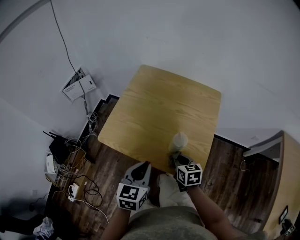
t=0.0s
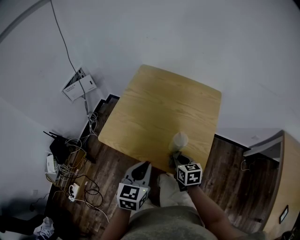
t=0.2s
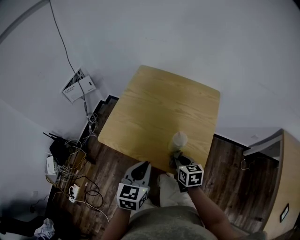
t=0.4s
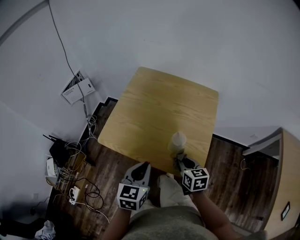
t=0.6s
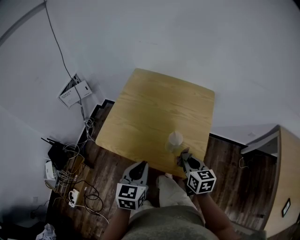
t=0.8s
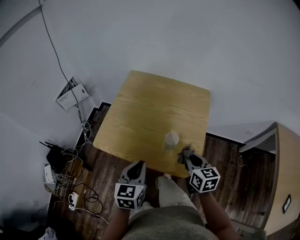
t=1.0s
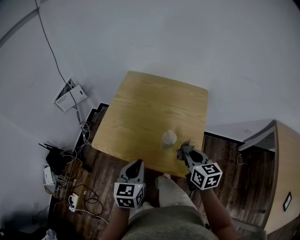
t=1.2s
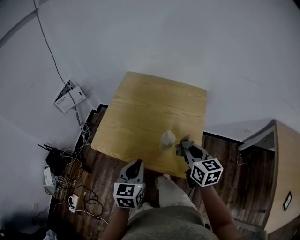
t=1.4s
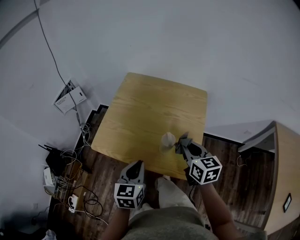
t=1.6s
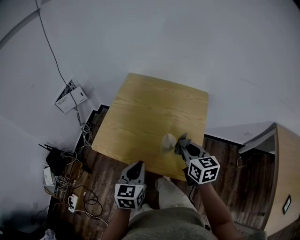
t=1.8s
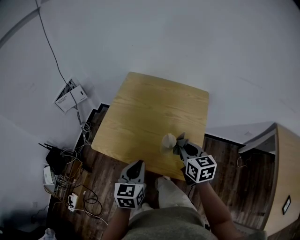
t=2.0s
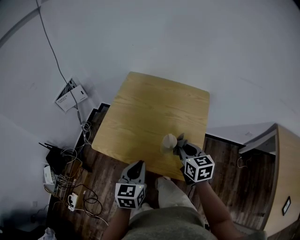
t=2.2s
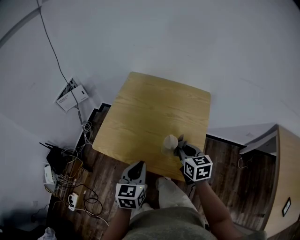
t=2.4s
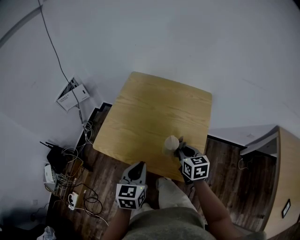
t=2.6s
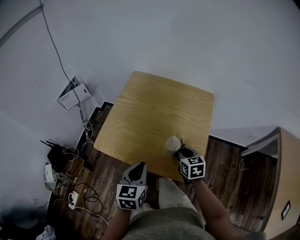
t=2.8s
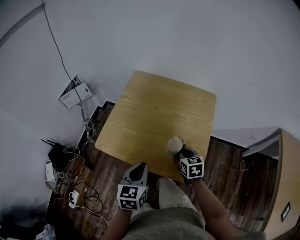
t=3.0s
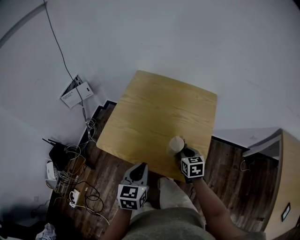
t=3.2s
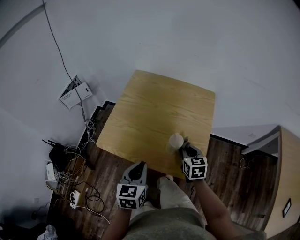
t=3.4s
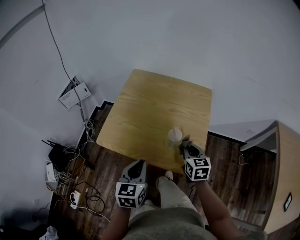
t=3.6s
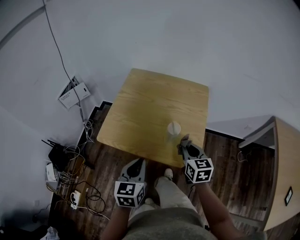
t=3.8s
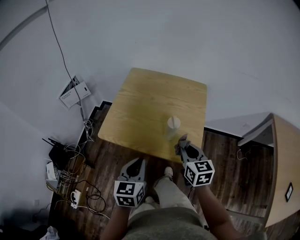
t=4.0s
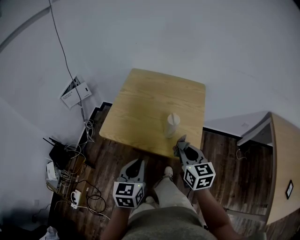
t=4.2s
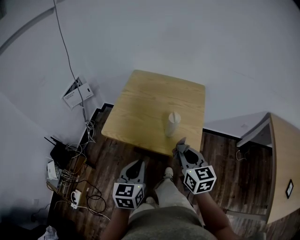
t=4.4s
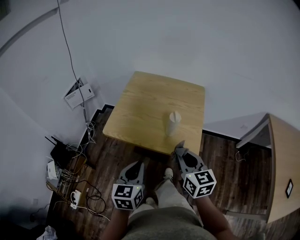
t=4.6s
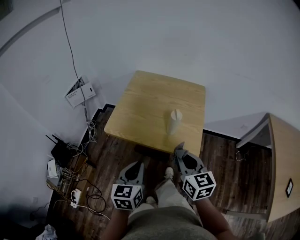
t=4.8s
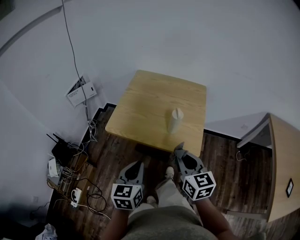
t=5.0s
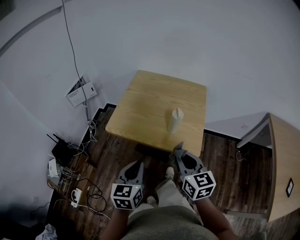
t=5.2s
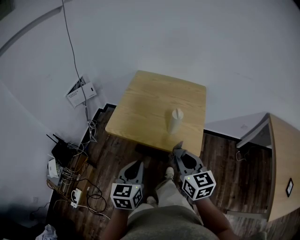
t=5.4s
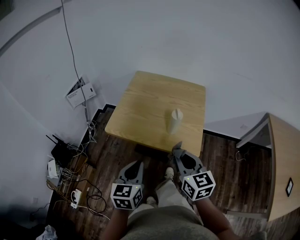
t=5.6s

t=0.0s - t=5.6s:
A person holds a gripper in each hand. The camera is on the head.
t=0.0s - t=1.4s: The right gripper is displaced upward and to the right by roughly 15 cm.
t=1.4s - t=2.8s: The right gripper shifts roughly 10 cm downward.
t=2.8s - t=4.2s: The left gripper shifts some 10 cm backward. Meanwhile the right gripper heads upward and backward, covering approximately 20 cm.
t=4.2s - t=5.6s: The right gripper moves backward and to the left, roughly 10 cm. Meanwhile the left gripper shifts by approximately 5 cm.

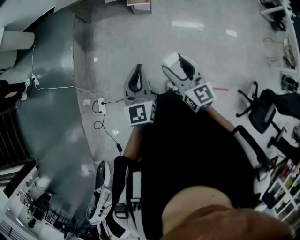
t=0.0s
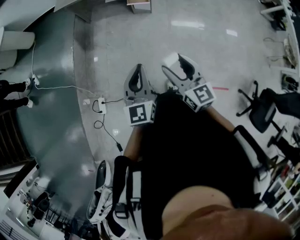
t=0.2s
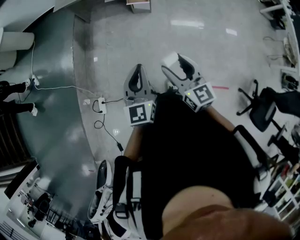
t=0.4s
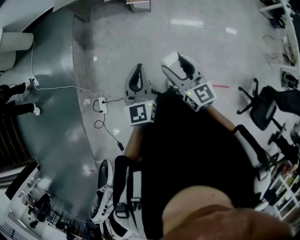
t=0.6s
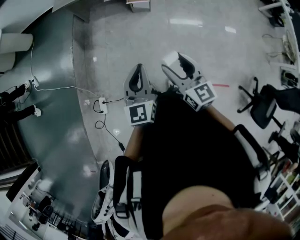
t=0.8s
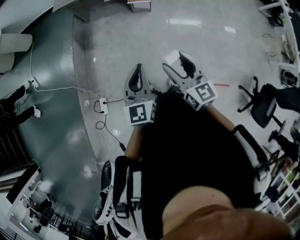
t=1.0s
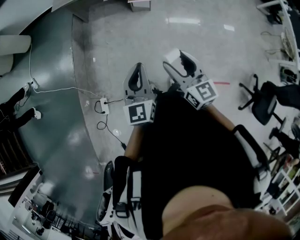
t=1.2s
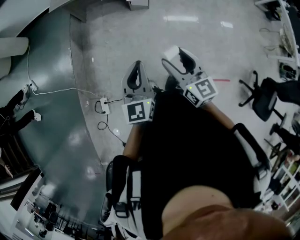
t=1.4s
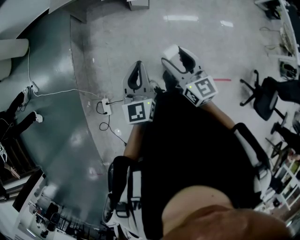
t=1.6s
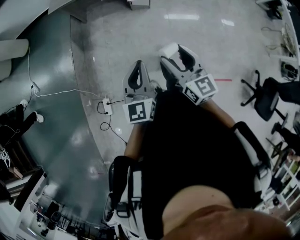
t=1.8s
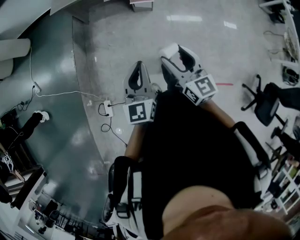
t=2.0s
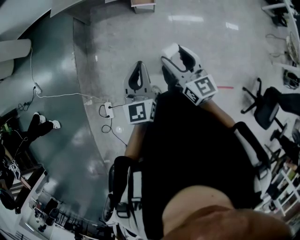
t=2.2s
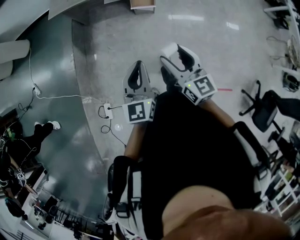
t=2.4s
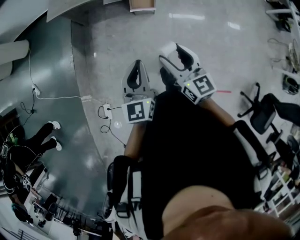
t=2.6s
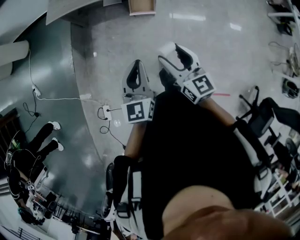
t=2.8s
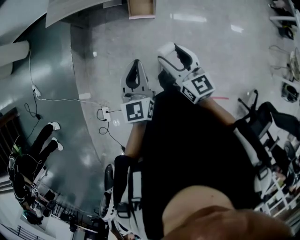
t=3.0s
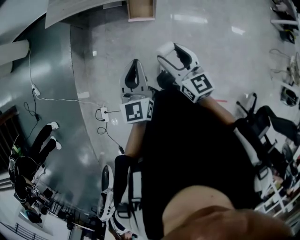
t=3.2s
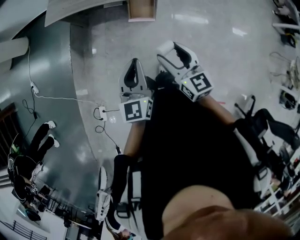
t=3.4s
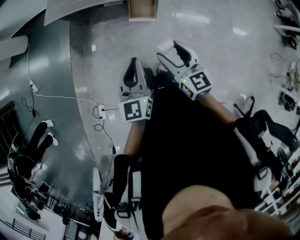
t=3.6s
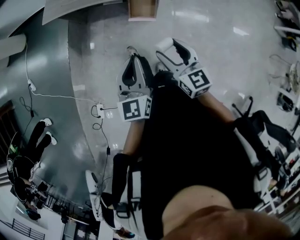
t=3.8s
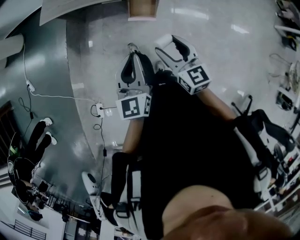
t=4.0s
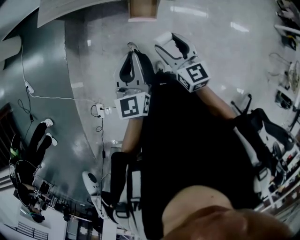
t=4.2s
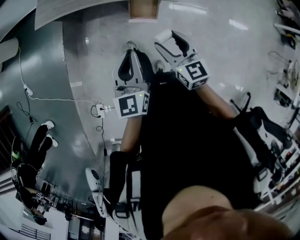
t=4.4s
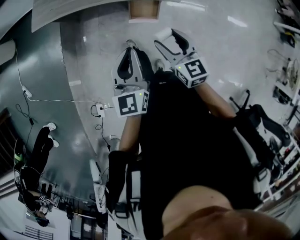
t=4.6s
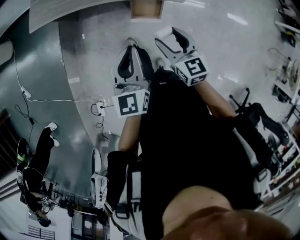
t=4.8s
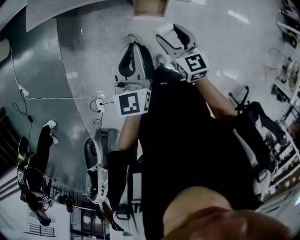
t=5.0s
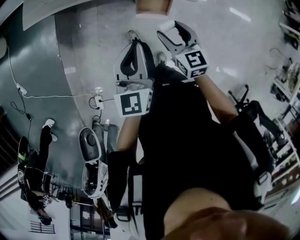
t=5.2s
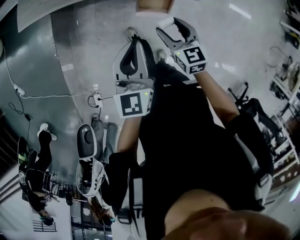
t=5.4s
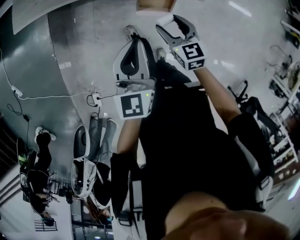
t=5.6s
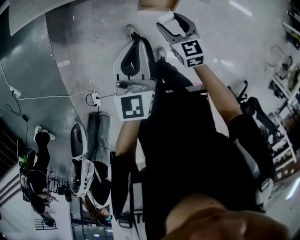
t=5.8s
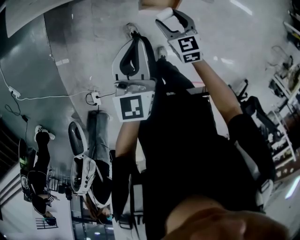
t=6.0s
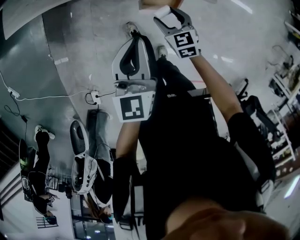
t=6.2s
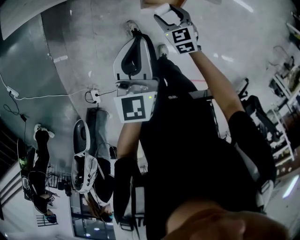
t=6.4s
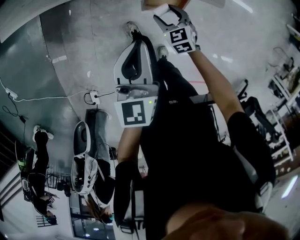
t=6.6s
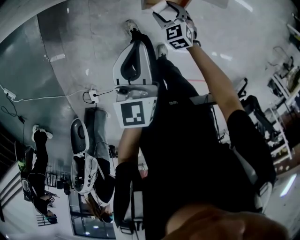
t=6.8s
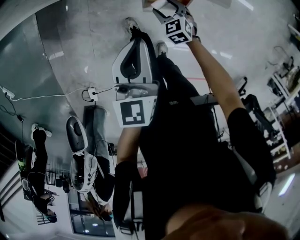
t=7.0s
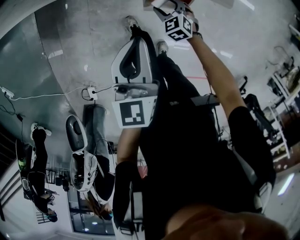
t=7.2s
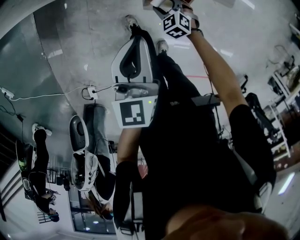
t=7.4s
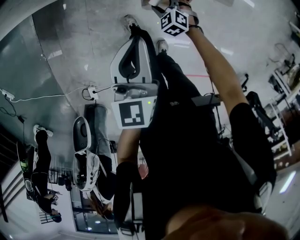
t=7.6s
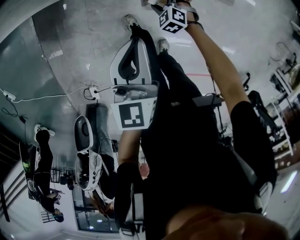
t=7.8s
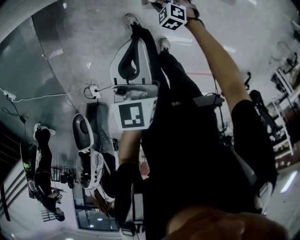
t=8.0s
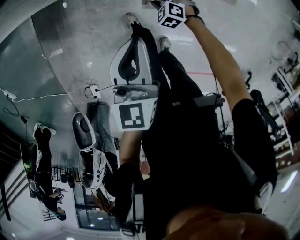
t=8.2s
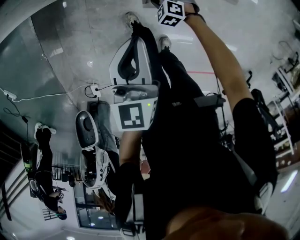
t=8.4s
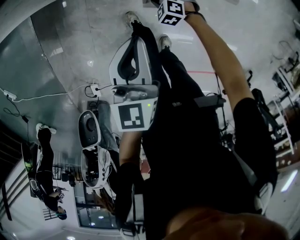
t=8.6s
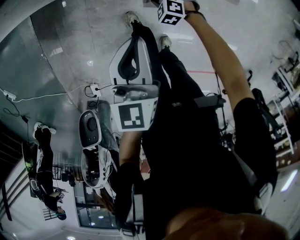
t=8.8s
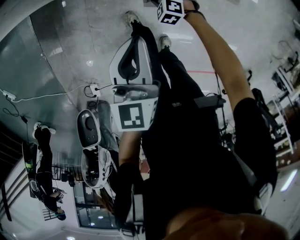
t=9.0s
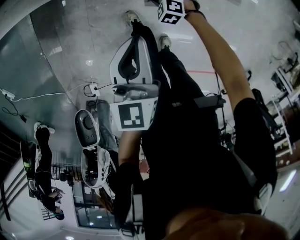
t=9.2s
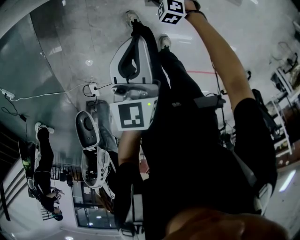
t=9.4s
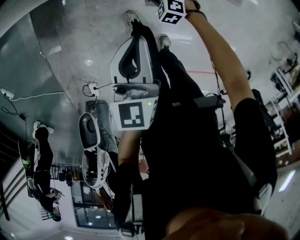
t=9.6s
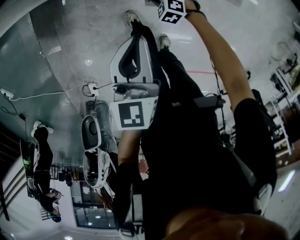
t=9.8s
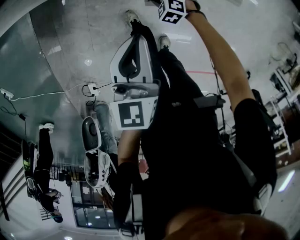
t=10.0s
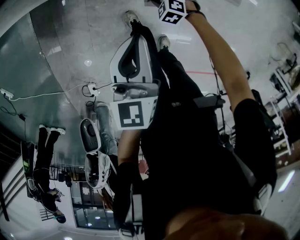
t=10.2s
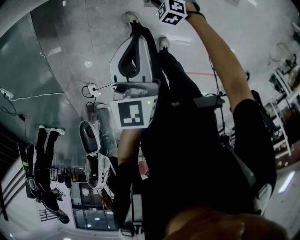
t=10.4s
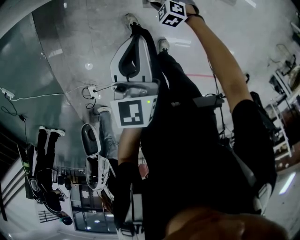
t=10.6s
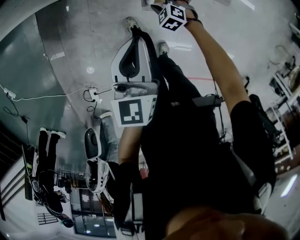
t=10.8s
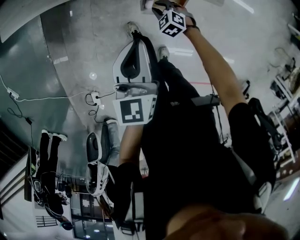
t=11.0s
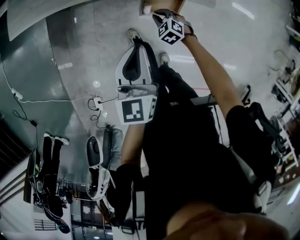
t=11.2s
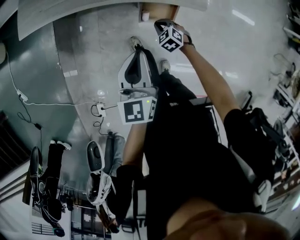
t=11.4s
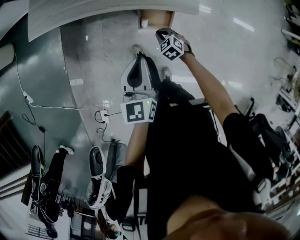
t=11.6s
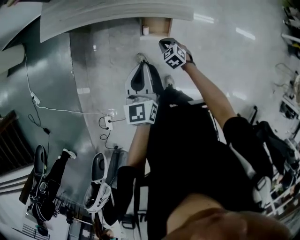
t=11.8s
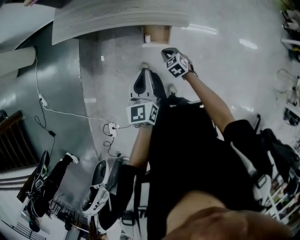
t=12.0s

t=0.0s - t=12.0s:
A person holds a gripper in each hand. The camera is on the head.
t=0.0s - t=1.6s: The grippers both shift to the left by about 5 cm.
t=1.6s - t=3.0s: The right gripper heads forward, covering some 25 cm. The left gripper goes some 25 cm forward and to the right.
t=3.0s - t=4.4s: The right gripper shifts approximately 20 cm forward and downward; the left gripper is displaced forward by some 15 cm.
t=4.4s - t=6.0s: The left gripper goes approximately 20 cm forward and downward. Meanwhile the right gripper shifts some 30 cm downward and forward, and turns by some 20 degrees.
t=6.0s - t=7.6s: The left gripper goes about 5 cm downward. The right gripper travels downward by approximately 20 cm, and swivels some 40 degrees.
t=7.6s - t=10.4s: The grippers move only a little.
t=10.4s - t=12.0s: The right gripper shifts some 30 cm upward and backward, changes its angle by about 40 degrees, and closes its fingers. Meanwhile the left gripper moves backward and upward, roughly 20 cm.

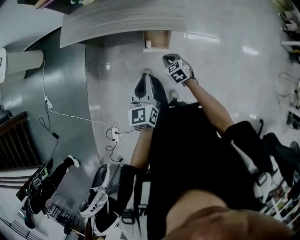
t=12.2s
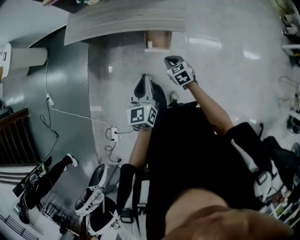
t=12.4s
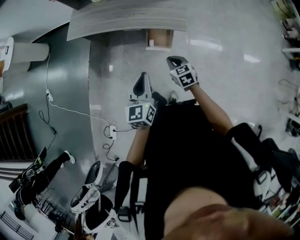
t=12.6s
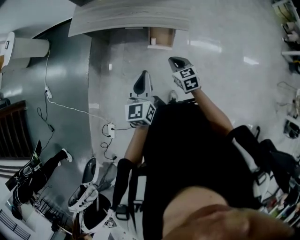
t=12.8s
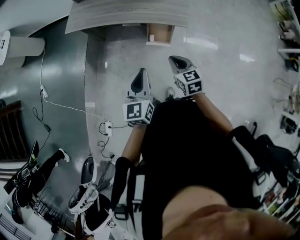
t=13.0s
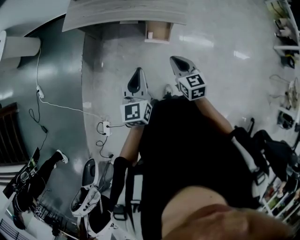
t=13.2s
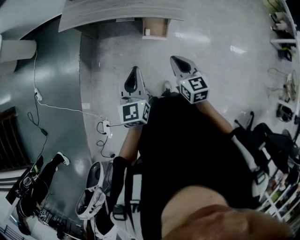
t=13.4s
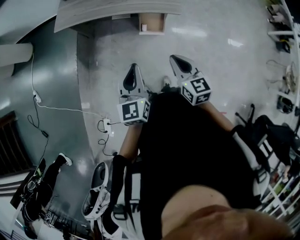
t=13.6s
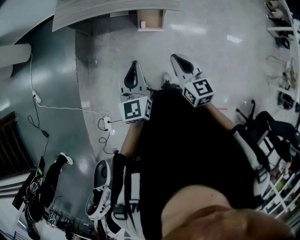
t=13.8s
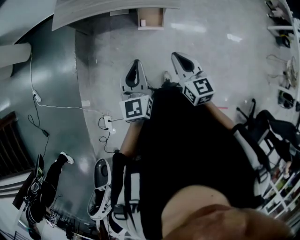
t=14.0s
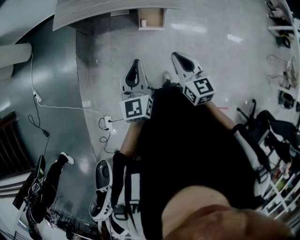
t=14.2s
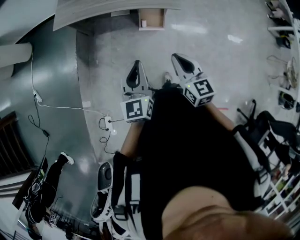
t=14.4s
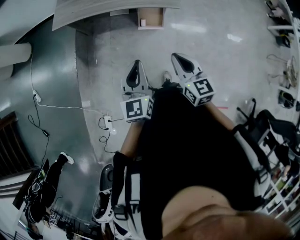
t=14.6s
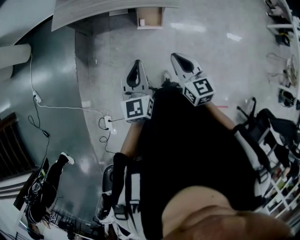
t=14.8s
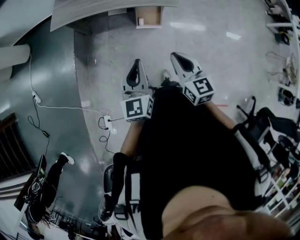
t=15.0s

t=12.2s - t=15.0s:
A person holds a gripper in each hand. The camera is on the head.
t=12.2s - t=13.6s: The right gripper moves upward and backward, approximately 25 cm, and rotates approximately 30 degrees; the left gripper shifts about 15 cm to the left, backward and upward.
t=13.6s - t=15.0s: The grippers stay close to where they were, moving slightly.

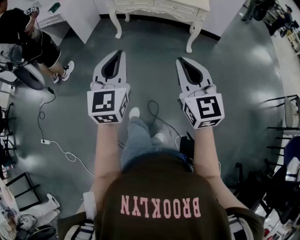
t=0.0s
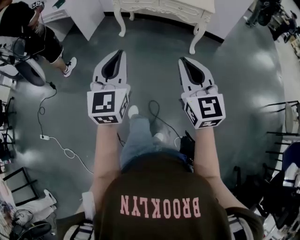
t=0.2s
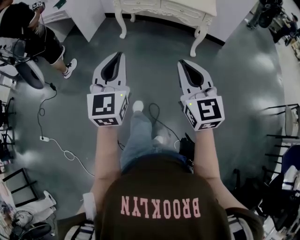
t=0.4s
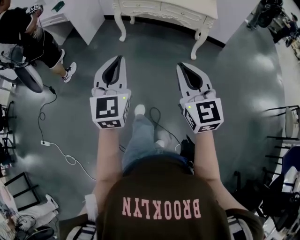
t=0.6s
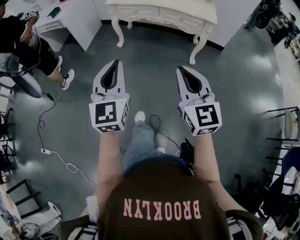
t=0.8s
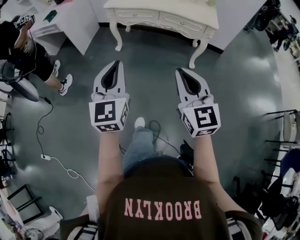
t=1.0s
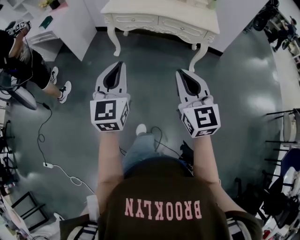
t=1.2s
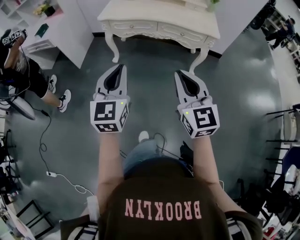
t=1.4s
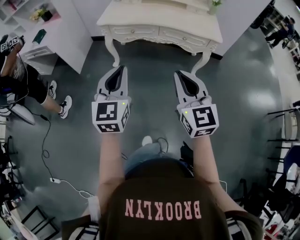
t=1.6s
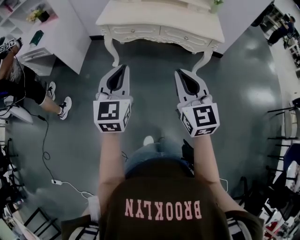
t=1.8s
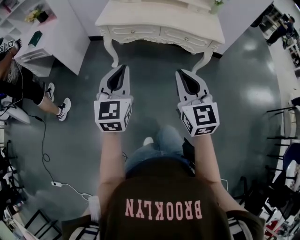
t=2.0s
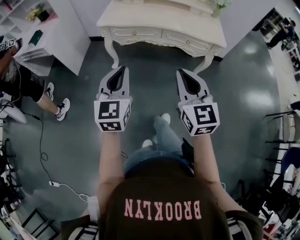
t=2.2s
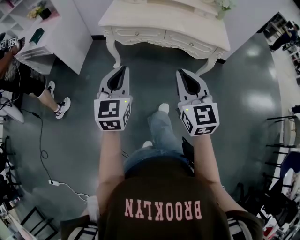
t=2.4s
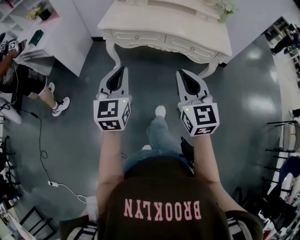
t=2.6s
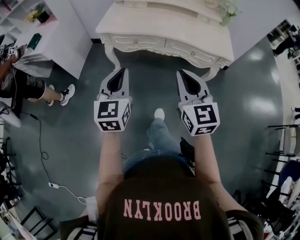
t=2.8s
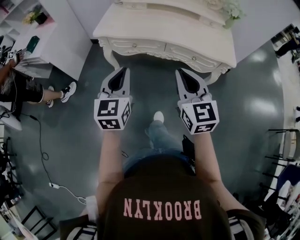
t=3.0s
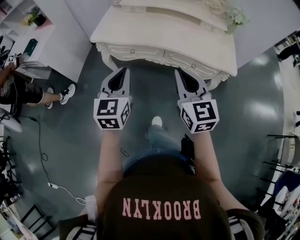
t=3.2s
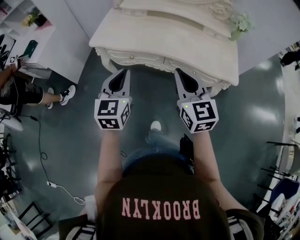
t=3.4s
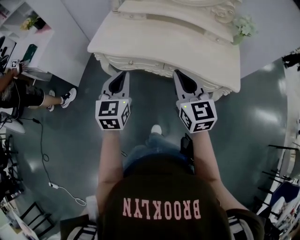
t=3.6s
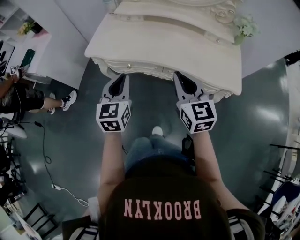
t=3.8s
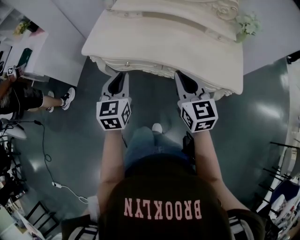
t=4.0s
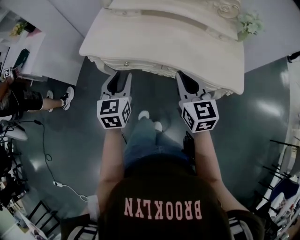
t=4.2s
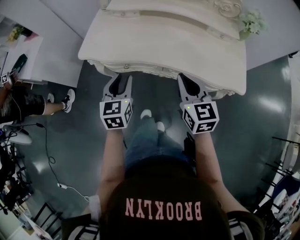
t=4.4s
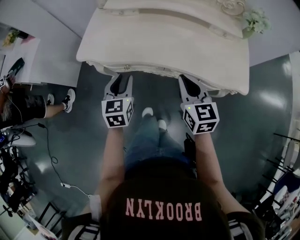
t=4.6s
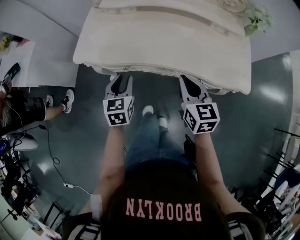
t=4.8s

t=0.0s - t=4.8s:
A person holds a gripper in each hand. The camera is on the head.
t=0.0s - t=1.6s: Both grippers move forward, approximately 35 cm.
t=1.6s - t=3.2s: Both grippers travel together forward, some 30 cm.
t=3.2s - t=4.8s: Both grippers travel together forward and downward, approximately 25 cm. The left gripper rotates roughly 20 degrees, and opens up. Meanwhile the right gripper swivels about 20 degrees.
